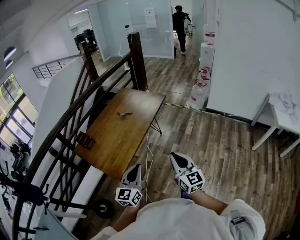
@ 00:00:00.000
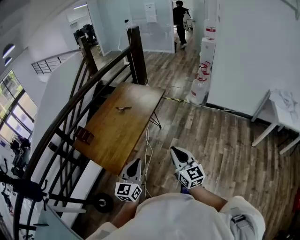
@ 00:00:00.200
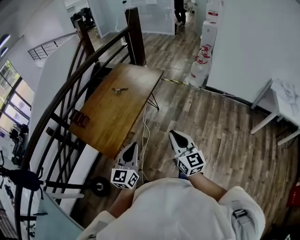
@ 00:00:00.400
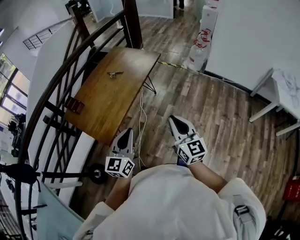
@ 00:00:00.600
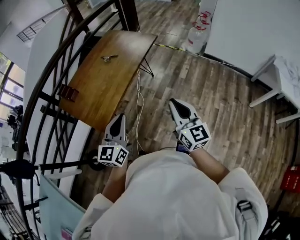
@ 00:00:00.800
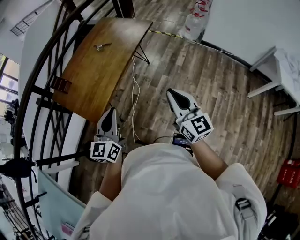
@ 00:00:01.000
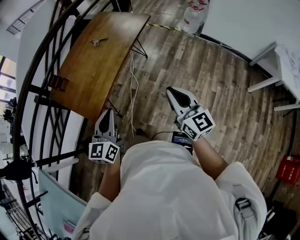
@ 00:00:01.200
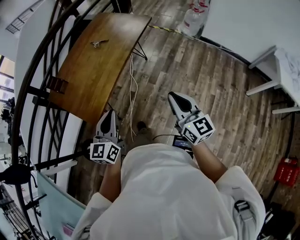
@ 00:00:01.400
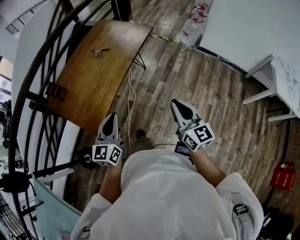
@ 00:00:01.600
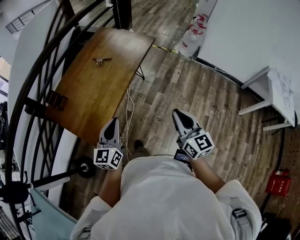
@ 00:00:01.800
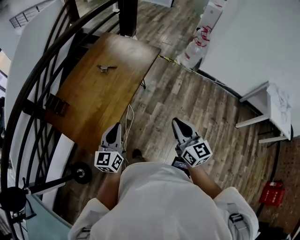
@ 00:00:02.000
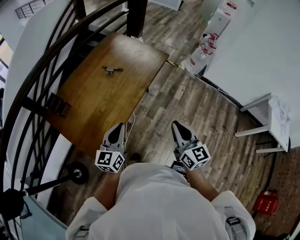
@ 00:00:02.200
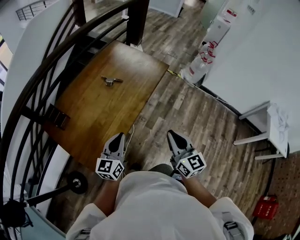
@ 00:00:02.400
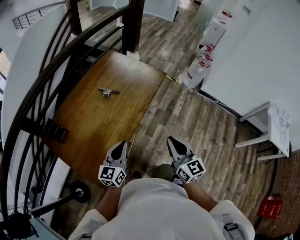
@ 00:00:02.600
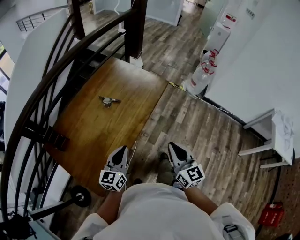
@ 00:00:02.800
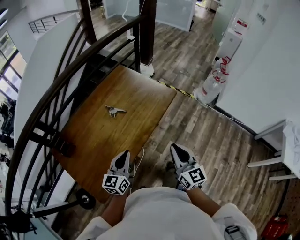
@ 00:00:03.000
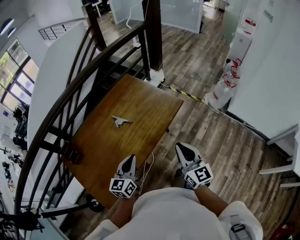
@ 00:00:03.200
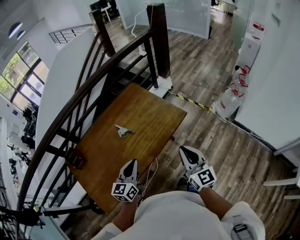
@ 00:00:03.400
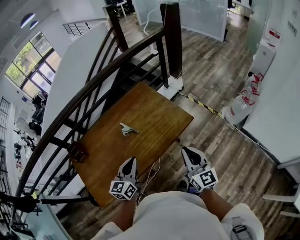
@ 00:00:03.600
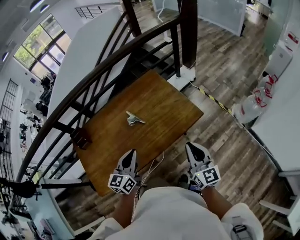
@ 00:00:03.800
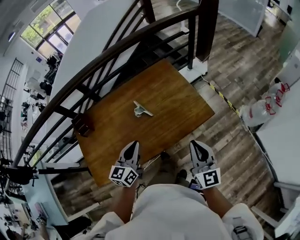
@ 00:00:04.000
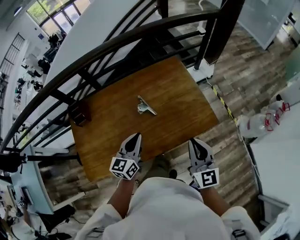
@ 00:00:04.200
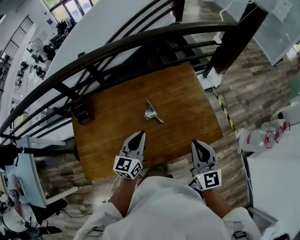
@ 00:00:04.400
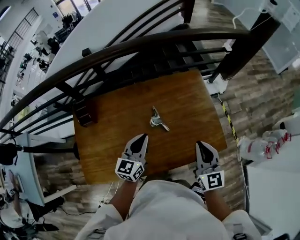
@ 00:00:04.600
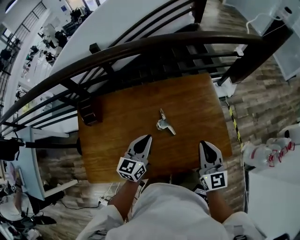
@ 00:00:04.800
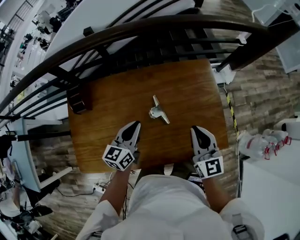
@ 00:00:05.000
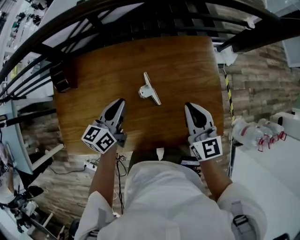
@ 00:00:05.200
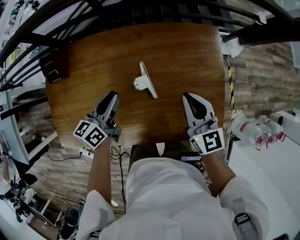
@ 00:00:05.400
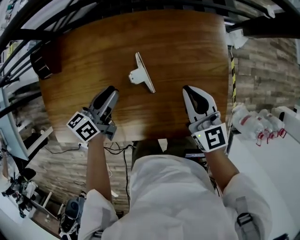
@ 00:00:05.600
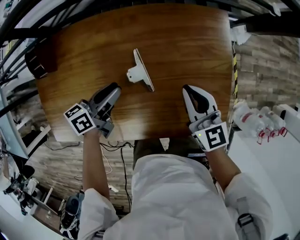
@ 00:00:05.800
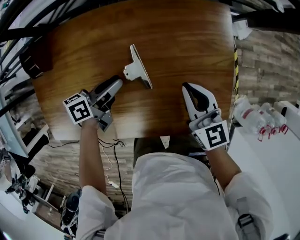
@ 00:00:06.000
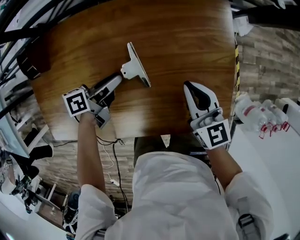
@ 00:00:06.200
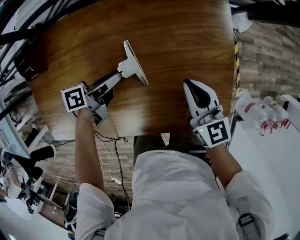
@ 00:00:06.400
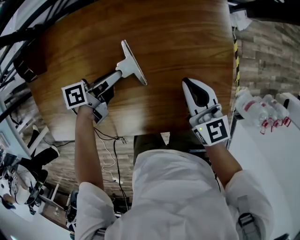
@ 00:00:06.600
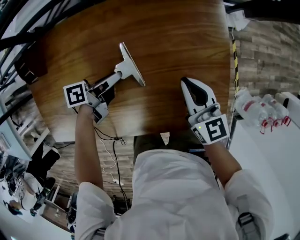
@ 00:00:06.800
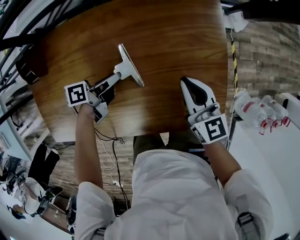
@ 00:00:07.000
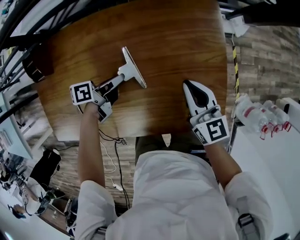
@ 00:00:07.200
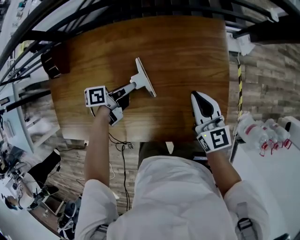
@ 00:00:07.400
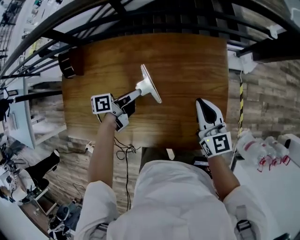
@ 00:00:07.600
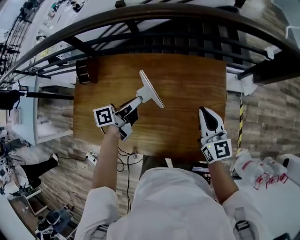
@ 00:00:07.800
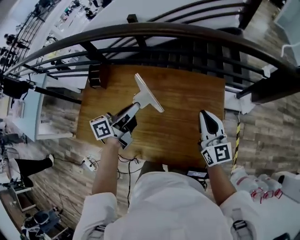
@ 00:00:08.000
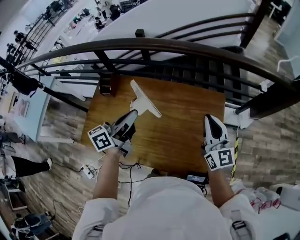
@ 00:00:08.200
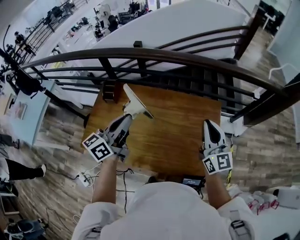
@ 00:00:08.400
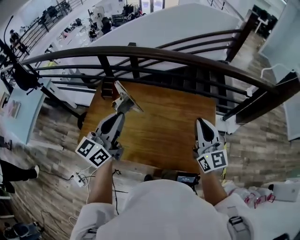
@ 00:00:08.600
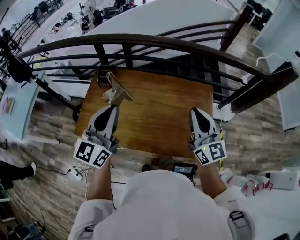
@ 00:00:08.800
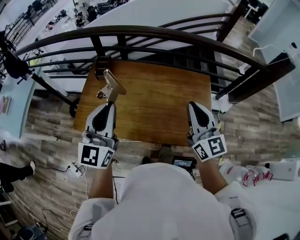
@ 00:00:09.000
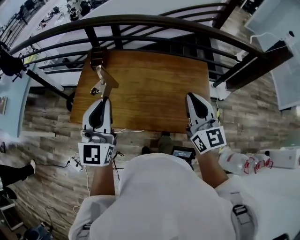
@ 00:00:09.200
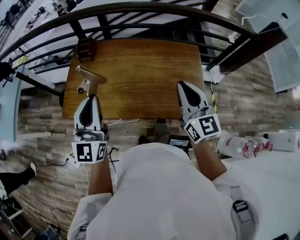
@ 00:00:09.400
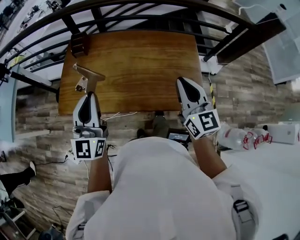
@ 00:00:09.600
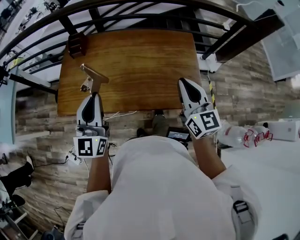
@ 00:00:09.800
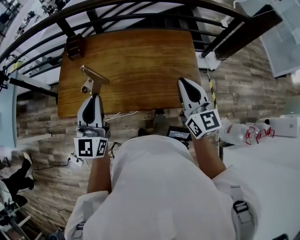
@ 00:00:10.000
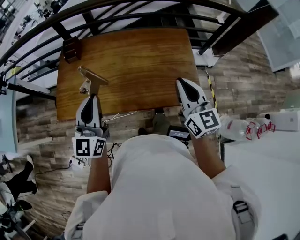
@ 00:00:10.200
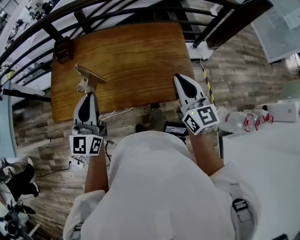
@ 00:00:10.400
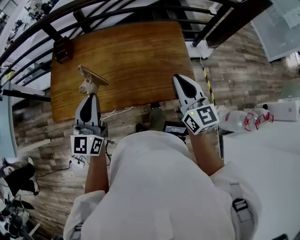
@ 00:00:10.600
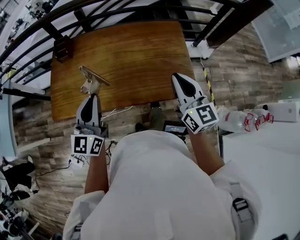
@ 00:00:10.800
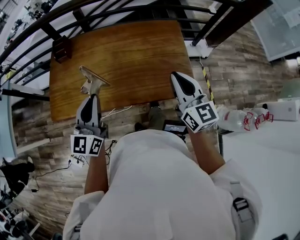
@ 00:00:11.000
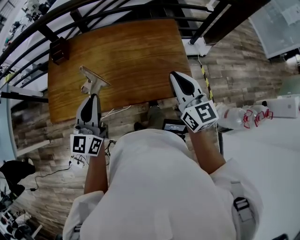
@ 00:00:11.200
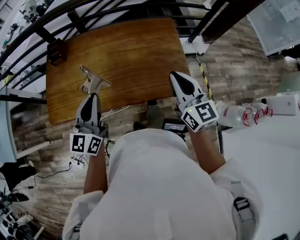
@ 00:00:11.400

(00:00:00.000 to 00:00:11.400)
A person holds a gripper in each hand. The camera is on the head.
00:00:00.000 - 00:00:01.400: The right gripper travels to the right, downward and forward by some 10 cm; the left gripper goes approximately 10 cm forward and downward.
00:00:01.400 - 00:00:02.800: The two grippers go about 30 cm forward.
00:00:02.800 - 00:00:04.200: The left gripper moves roughly 20 cm, and turns by some 40 degrees; the right gripper ends up some 30 cm from where it was, and swivels roughly 30 degrees.
00:00:04.200 - 00:00:05.600: Both grippers move forward and downward, roughly 25 cm. The left gripper swivels roughly 40 degrees, and opens up, while the right gripper changes its angle by about 30 degrees.
00:00:05.600 - 00:00:07.200: The left gripper goes about 10 cm downward and to the right, swivels roughly 30 degrees, and closes. Meanwhile the right gripper changes place by some 5 cm.
00:00:07.200 - 00:00:08.600: The grippers both shift upward by some 40 cm. The right gripper rotates some 30 degrees, while the left gripper rotates approximately 80 degrees.
00:00:08.600 - 00:00:10.000: The two grippers go approximately 15 cm backward and downward.
00:00:10.000 - 00:00:11.400: The left gripper moves to the right, about 5 cm.

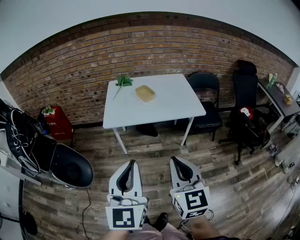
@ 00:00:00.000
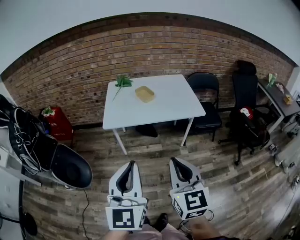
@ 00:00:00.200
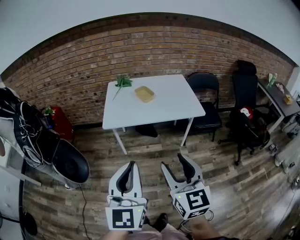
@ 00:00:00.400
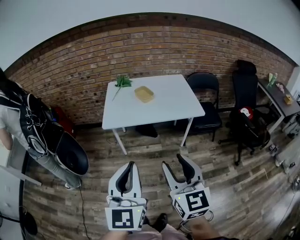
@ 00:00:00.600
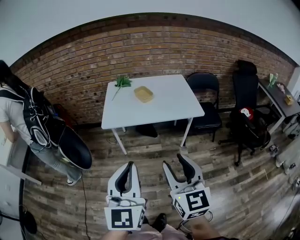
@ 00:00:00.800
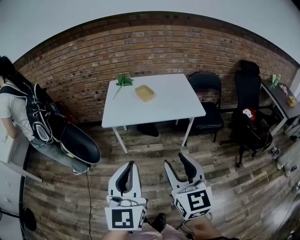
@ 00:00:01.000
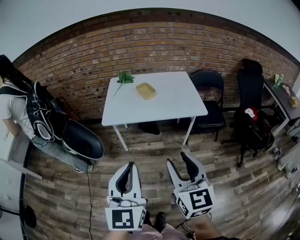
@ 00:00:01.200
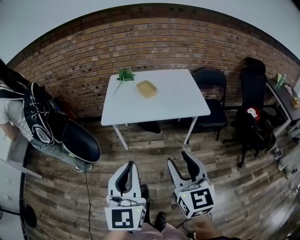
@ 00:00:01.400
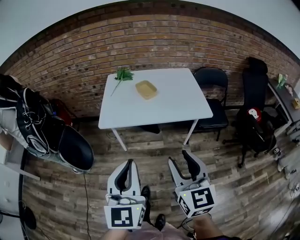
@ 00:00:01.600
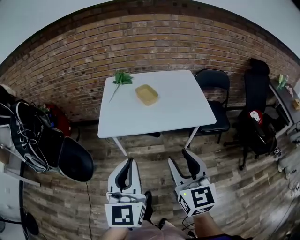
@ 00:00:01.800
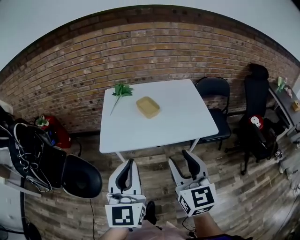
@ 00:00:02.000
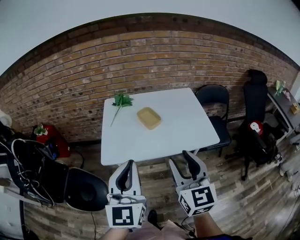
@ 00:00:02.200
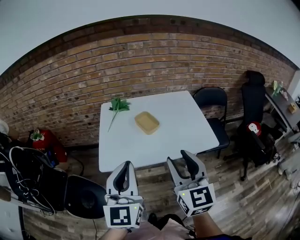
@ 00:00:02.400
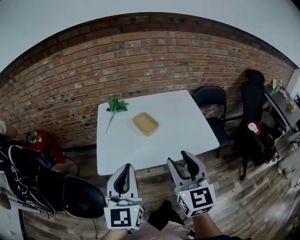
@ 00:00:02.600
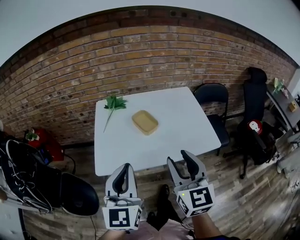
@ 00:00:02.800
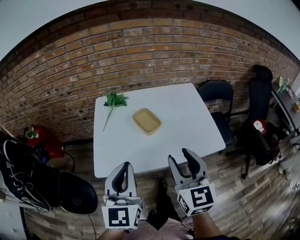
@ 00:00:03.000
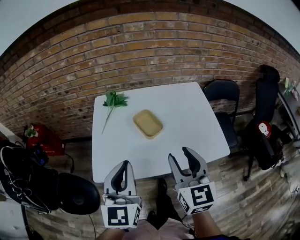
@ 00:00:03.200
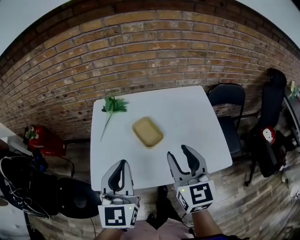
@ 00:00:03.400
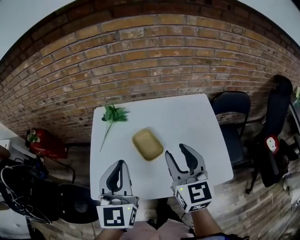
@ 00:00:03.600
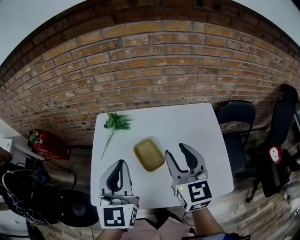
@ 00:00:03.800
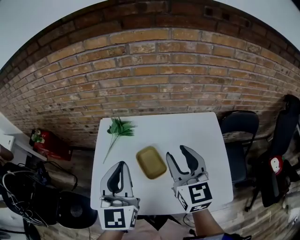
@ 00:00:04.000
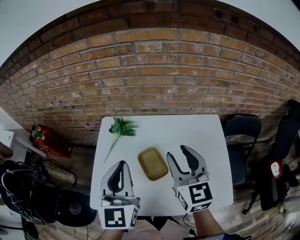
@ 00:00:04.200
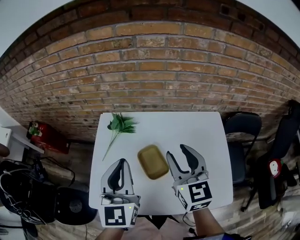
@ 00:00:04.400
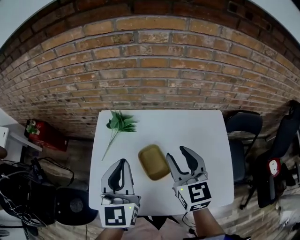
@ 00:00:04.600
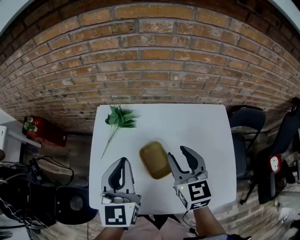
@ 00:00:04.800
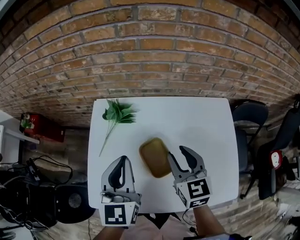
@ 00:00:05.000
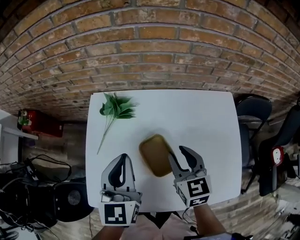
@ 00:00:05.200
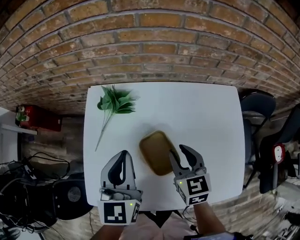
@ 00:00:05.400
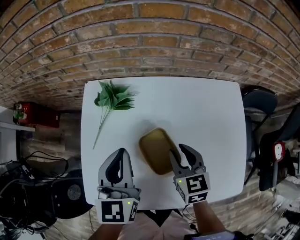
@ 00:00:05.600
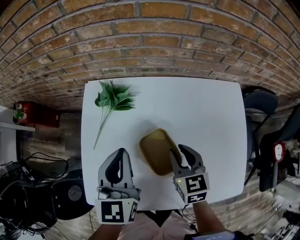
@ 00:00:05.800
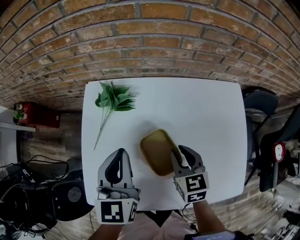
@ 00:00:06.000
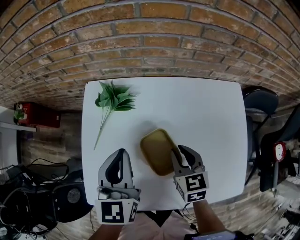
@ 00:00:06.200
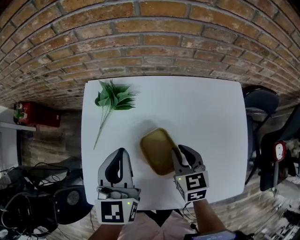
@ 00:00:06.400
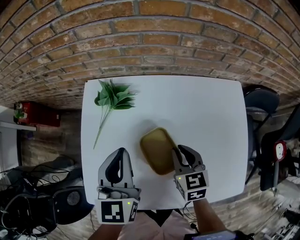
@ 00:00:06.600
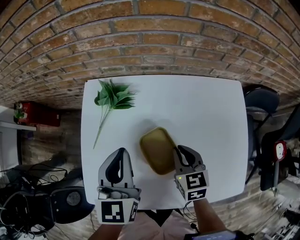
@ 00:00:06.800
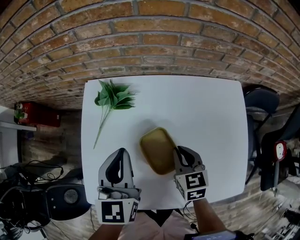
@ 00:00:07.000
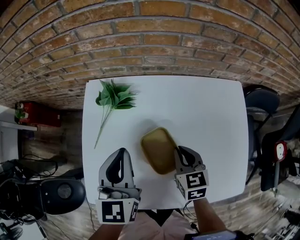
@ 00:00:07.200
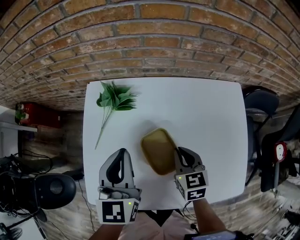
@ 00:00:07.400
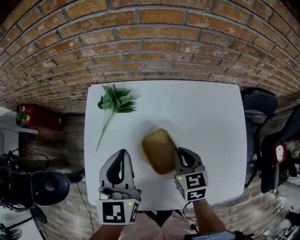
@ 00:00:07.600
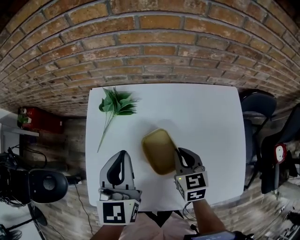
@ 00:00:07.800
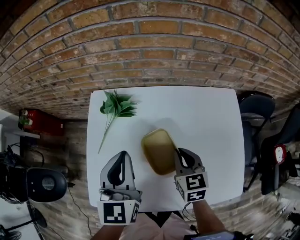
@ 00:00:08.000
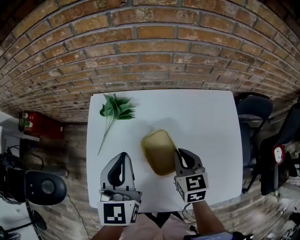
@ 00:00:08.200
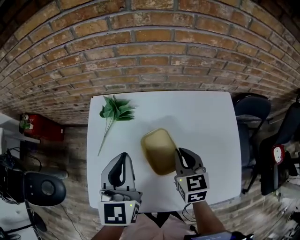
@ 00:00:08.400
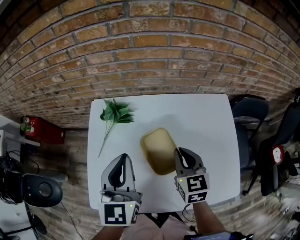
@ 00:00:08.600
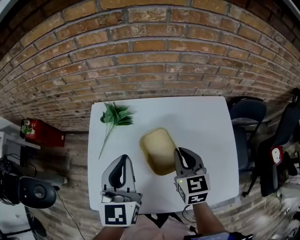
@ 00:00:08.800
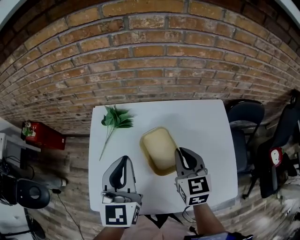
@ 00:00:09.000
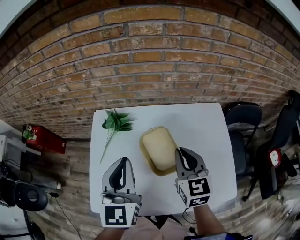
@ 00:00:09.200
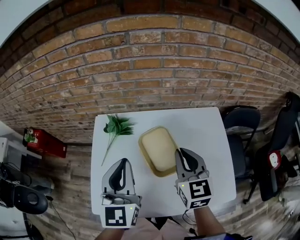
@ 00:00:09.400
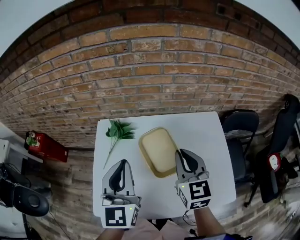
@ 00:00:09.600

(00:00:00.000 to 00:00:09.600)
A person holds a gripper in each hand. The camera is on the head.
00:00:00.000 - 00:00:01.600: The two grippers go some 5 cm forward. The right gripper opens up.
00:00:01.600 - 00:00:03.200: The two grippers go approximately 35 cm forward.
00:00:03.200 - 00:00:04.800: Both grippers travel together forward, approximately 25 cm.
00:00:04.800 - 00:00:06.400: The left gripper is displaced downward by approximately 10 cm. The right gripper shifts approximately 15 cm downward, changes its angle by about 20 degrees, and closes up.
00:00:06.400 - 00:00:08.000: The grippers move only a little.
00:00:08.000 - 00:00:09.600: The right gripper goes about 15 cm upward, and rotates approximately 20 degrees. Meanwhile the left gripper shifts approximately 10 cm upward.

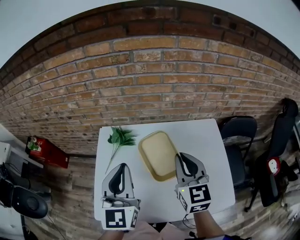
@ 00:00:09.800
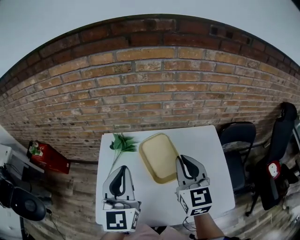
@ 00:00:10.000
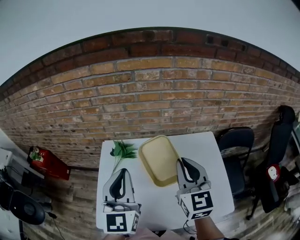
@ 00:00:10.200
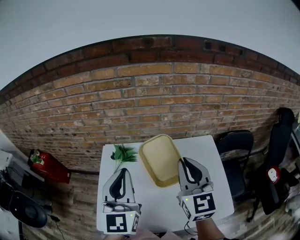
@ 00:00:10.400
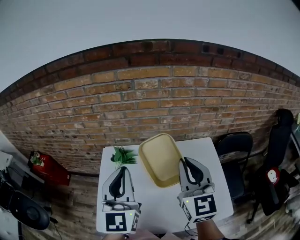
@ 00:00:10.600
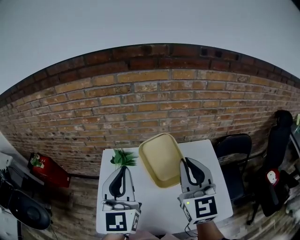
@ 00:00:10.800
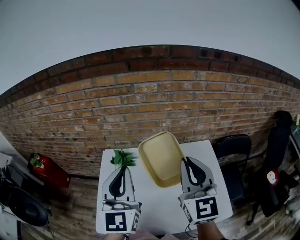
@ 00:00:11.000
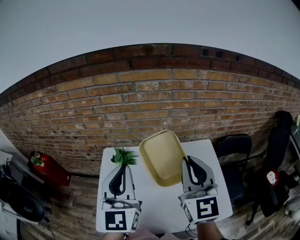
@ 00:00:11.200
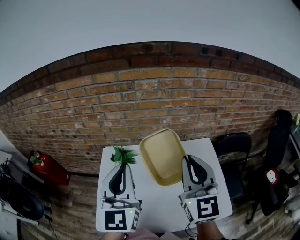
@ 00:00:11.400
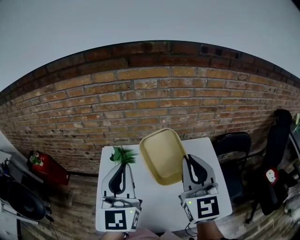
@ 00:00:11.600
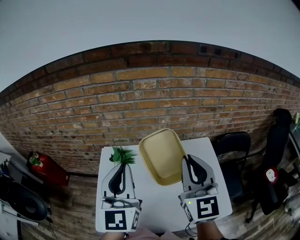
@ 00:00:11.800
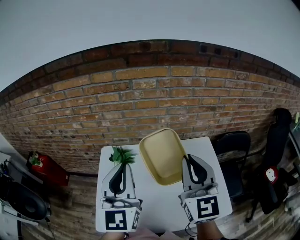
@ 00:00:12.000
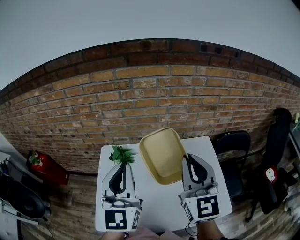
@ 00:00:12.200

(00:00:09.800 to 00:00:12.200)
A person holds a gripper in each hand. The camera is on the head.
00:00:09.800 - 00:00:11.000: The right gripper is displaced upward by approximately 15 cm. Meanwhile the left gripper goes about 10 cm upward.
00:00:11.000 - 00:00:12.200: The two grippers keep their place.
